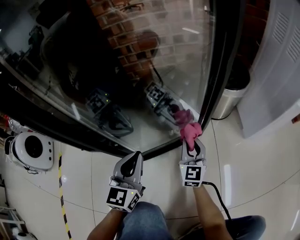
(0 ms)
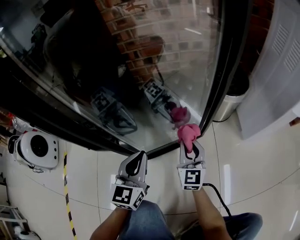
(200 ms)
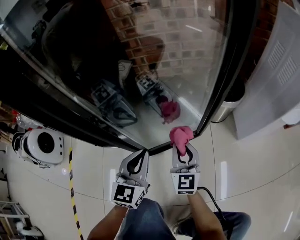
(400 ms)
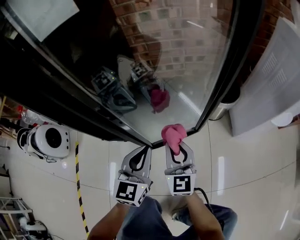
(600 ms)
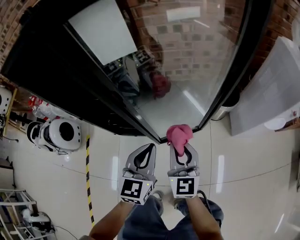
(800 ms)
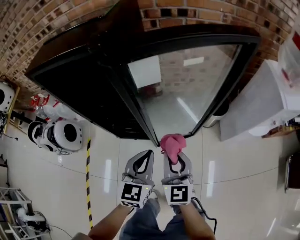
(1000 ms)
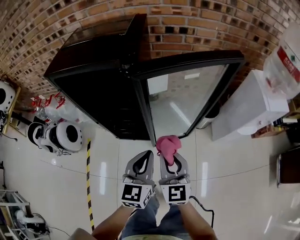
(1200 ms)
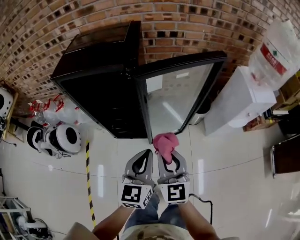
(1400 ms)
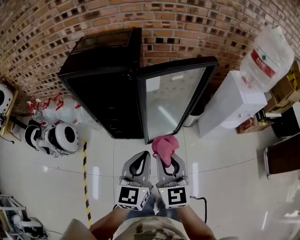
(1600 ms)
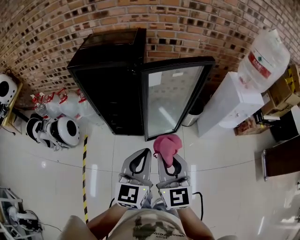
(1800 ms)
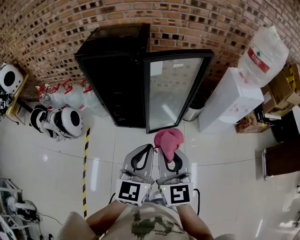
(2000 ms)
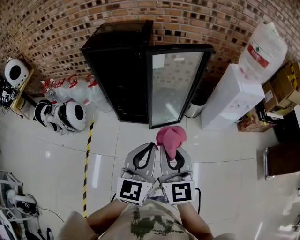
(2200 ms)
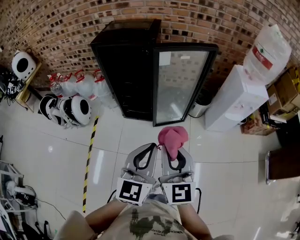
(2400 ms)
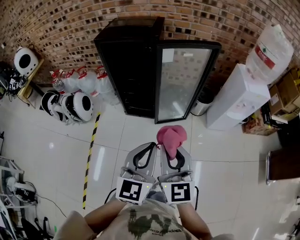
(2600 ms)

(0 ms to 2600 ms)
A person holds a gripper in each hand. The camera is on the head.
0 ms - 1200 ms: Both grippers move upward, some 60 cm.
1200 ms - 2600 ms: Both grippers travel together backward and upward, some 35 cm.

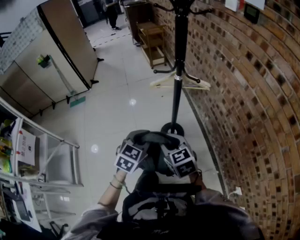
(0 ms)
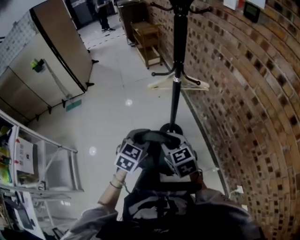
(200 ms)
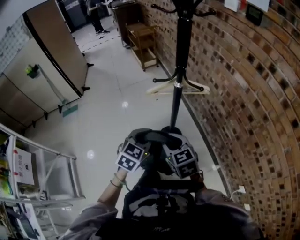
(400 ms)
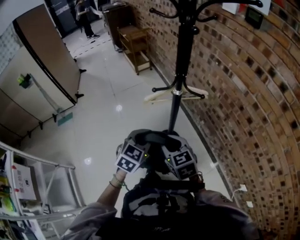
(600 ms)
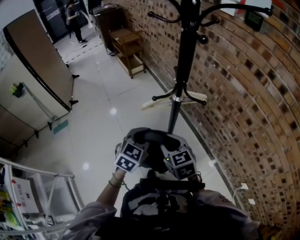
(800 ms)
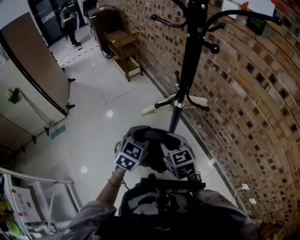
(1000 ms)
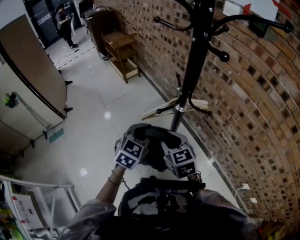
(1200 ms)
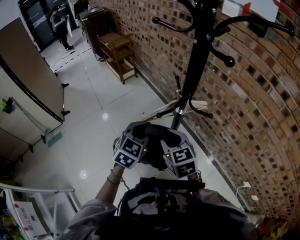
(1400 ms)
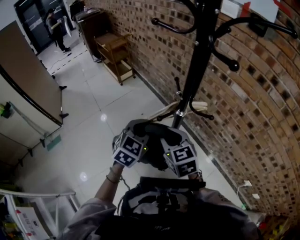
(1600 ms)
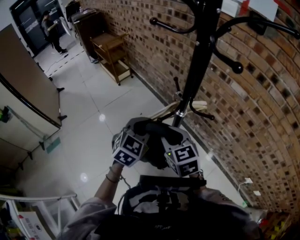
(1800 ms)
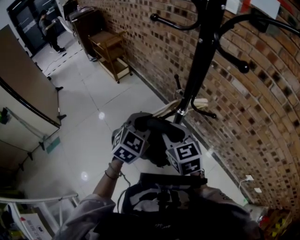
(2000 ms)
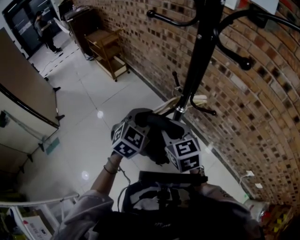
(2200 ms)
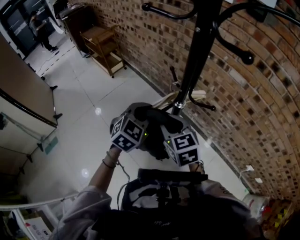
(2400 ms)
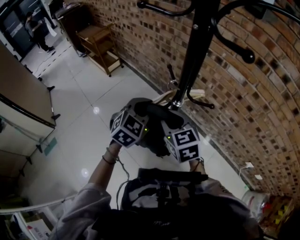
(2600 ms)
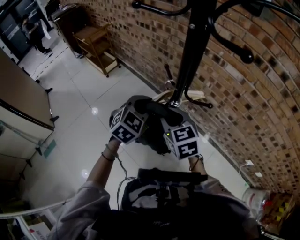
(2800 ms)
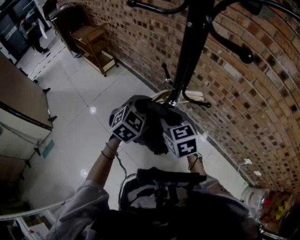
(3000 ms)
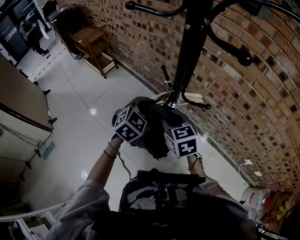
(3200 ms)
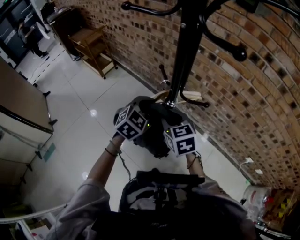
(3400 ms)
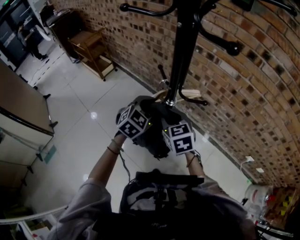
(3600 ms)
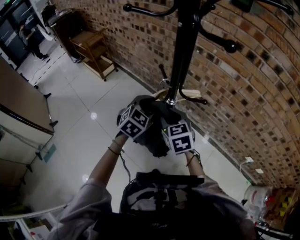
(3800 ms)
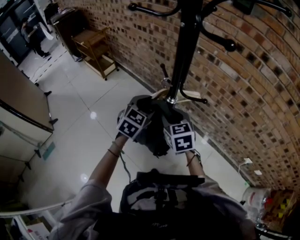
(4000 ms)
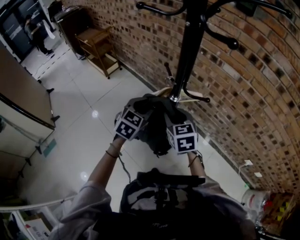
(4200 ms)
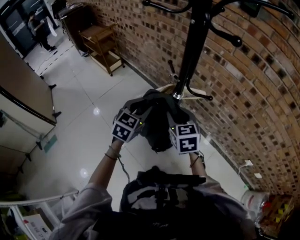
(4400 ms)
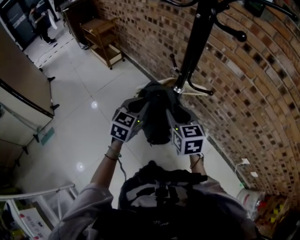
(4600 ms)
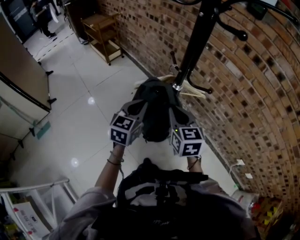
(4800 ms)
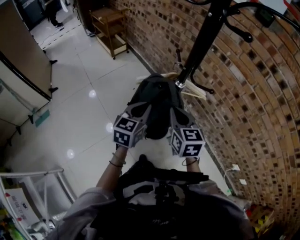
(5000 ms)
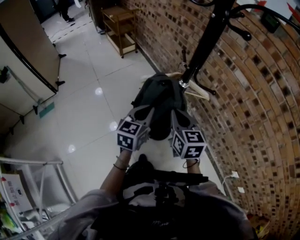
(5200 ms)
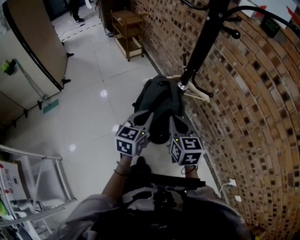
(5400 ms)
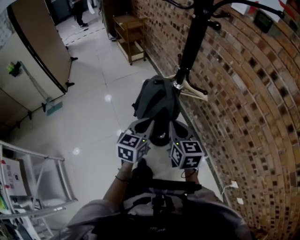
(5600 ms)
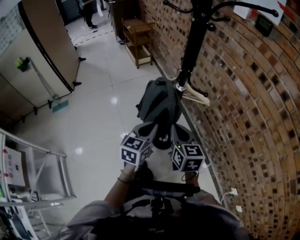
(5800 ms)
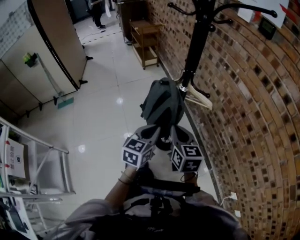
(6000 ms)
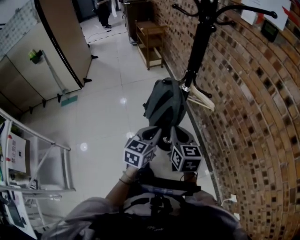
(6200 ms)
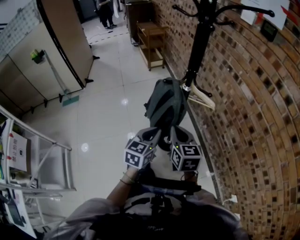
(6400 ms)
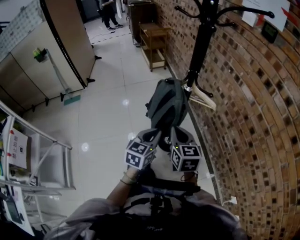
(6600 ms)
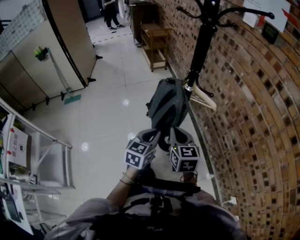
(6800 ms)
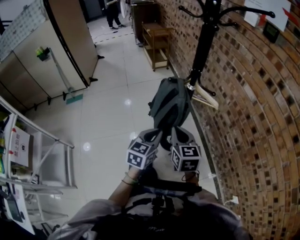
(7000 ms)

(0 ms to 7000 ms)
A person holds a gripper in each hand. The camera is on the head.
0 ms - 1400 ms: The grippers both shift forward by approximately 25 cm. The right gripper changes its angle by some 20 degrees. The left gripper turns by some 20 degrees.
1400 ms - 2800 ms: Both grippers move forward, roughly 10 cm. The left gripper turns by approximately 20 degrees.
2800 ms - 4200 ms: The grippers move only a little.
4200 ms - 5600 ms: The left gripper moves backward, roughly 15 cm, turns by about 40 degrees, and closes its fingers. Meanwhile the right gripper shifts approximately 15 cm backward and to the right, and closes its fingers.
5600 ms - 7000 ms: The grippers both shift backward by about 5 cm.

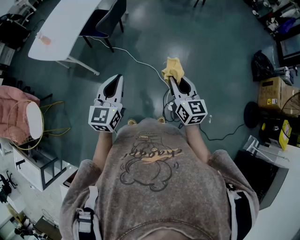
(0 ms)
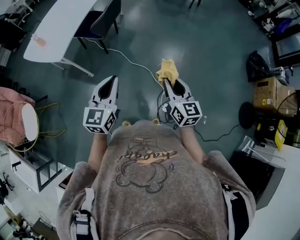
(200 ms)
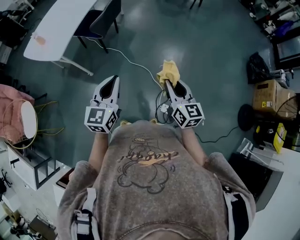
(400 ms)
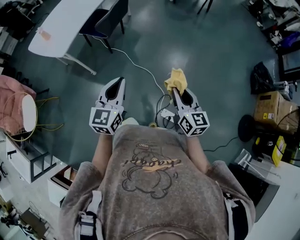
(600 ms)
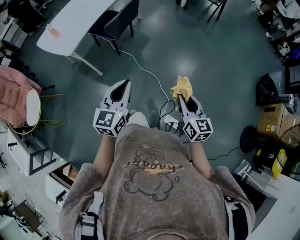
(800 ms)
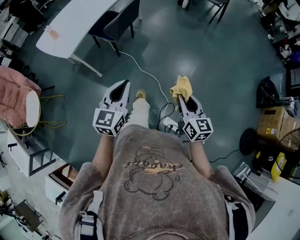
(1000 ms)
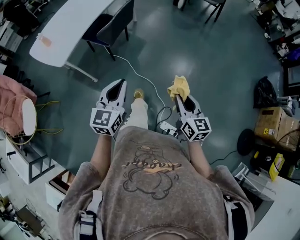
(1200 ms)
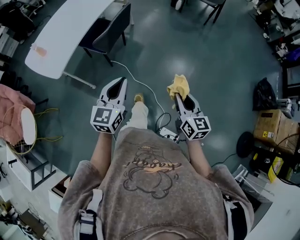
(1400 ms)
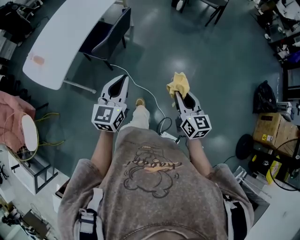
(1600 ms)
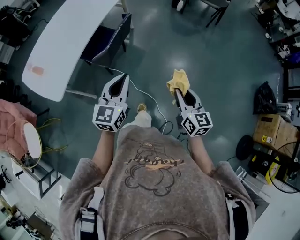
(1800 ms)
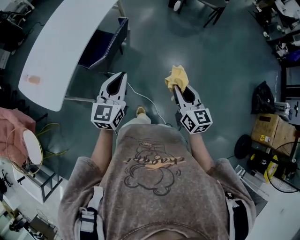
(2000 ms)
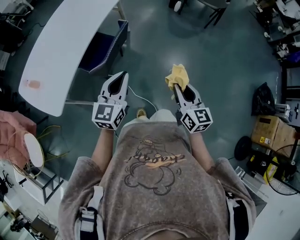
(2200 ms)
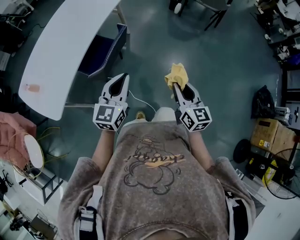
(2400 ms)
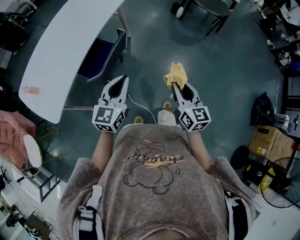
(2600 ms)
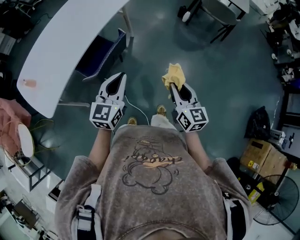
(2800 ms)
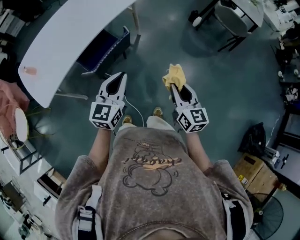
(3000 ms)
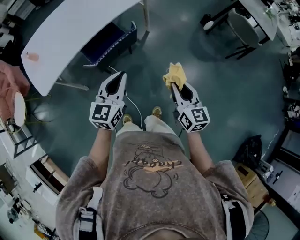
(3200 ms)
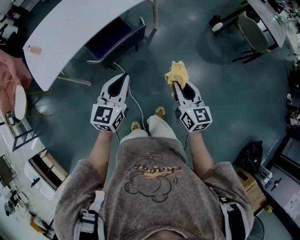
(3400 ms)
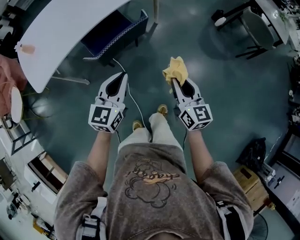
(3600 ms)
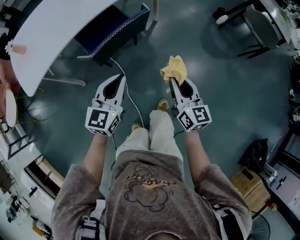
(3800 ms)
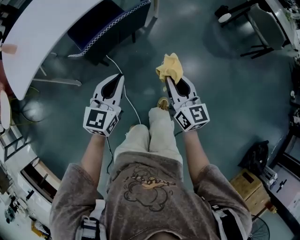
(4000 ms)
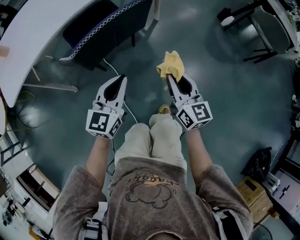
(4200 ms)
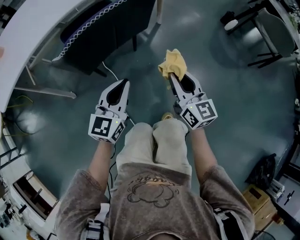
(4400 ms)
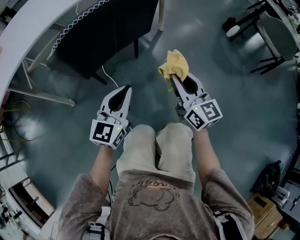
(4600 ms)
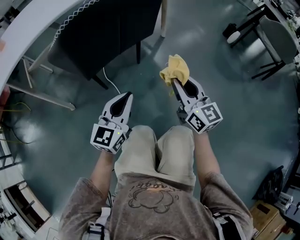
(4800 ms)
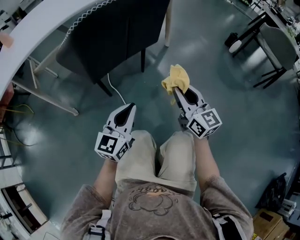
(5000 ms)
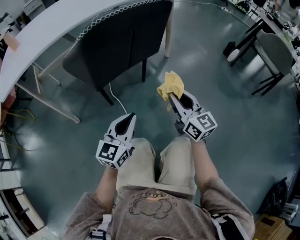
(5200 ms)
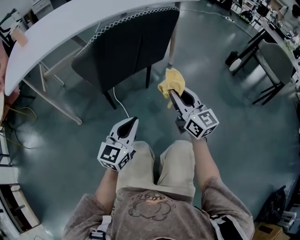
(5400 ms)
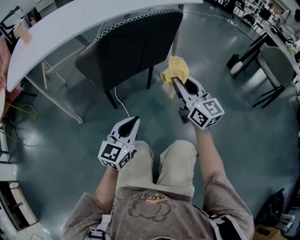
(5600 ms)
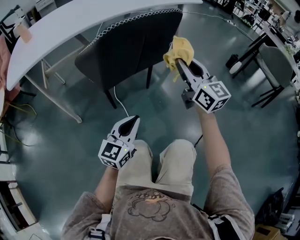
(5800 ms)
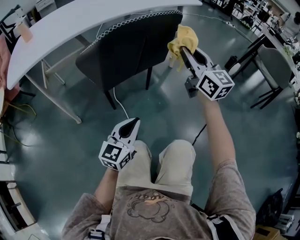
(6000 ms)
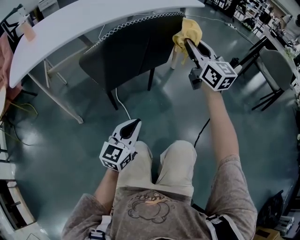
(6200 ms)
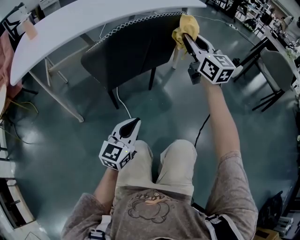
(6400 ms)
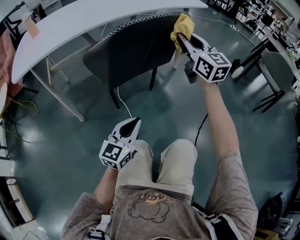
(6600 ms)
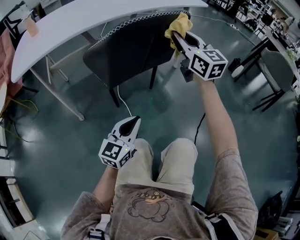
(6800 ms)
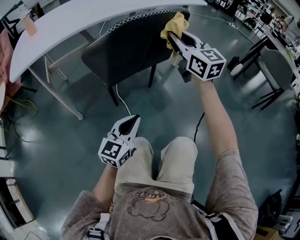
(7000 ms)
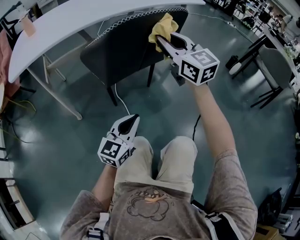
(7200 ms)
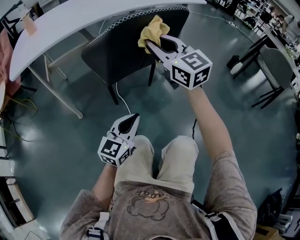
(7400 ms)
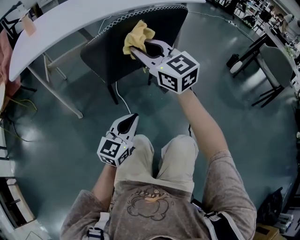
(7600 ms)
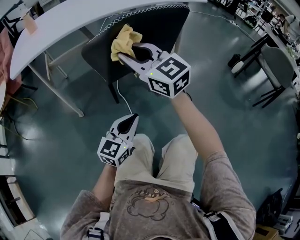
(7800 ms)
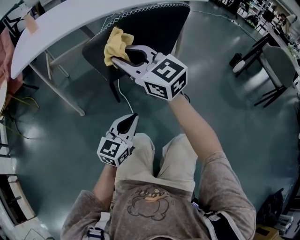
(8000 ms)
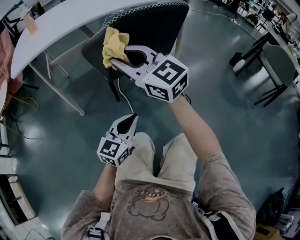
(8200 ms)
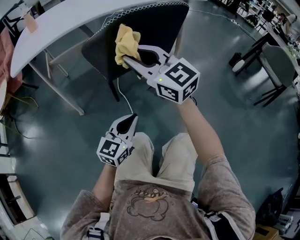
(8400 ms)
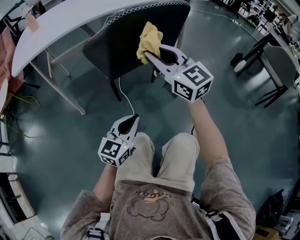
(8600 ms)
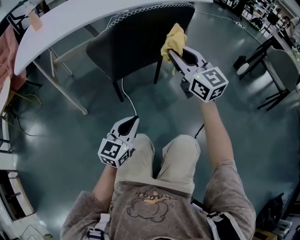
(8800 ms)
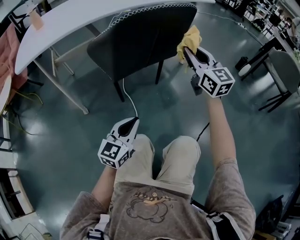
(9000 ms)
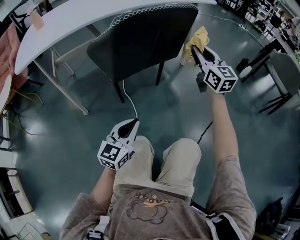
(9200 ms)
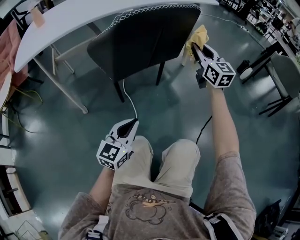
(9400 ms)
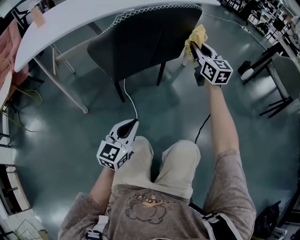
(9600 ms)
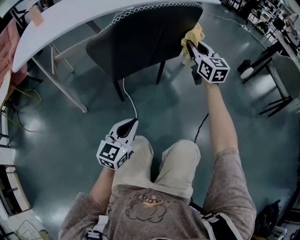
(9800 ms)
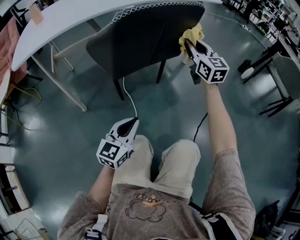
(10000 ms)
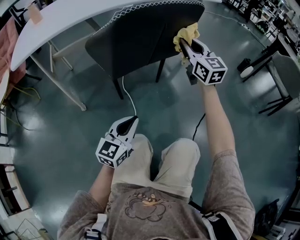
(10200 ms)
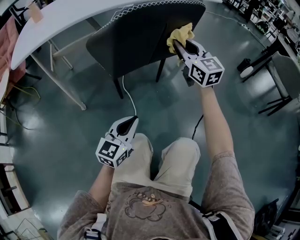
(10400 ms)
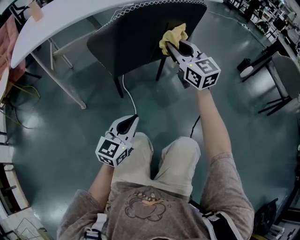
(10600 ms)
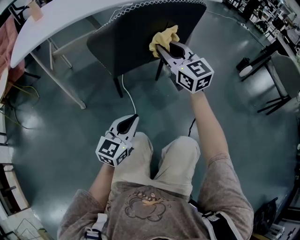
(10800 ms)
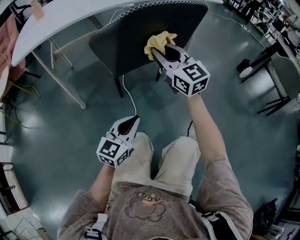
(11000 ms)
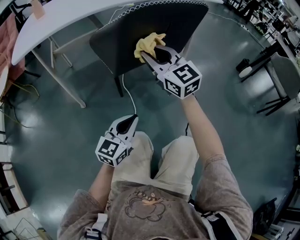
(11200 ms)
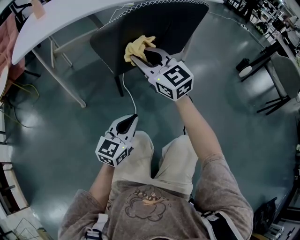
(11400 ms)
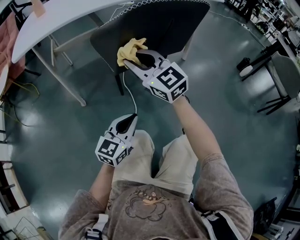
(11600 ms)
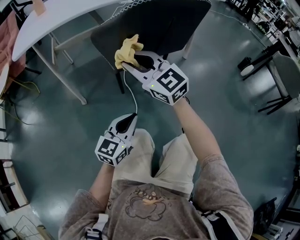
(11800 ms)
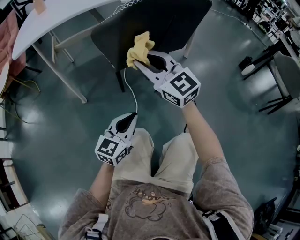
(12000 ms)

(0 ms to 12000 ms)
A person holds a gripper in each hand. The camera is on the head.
0 ms - 1600 ms: The grippers both shift forward by approximately 25 cm.
1600 ms - 3000 ms: The two grippers go approximately 30 cm forward.
3000 ms - 4400 ms: The left gripper moves downward, approximately 35 cm. Meanwhile the right gripper goes roughly 35 cm downward and forward.
4400 ms - 6000 ms: The left gripper travels downward and backward by approximately 10 cm. Meanwhile the right gripper moves forward and upward, approximately 15 cm.
6000 ms - 7600 ms: The right gripper goes approximately 20 cm to the left, and rotates about 20 degrees.
7600 ms - 9000 ms: The right gripper moves to the right, approximately 15 cm.
9000 ms - 10400 ms: The right gripper moves some 5 cm.
10400 ms - 12000 ms: The right gripper travels to the left and backward by about 20 cm, and swivels about 20 degrees.

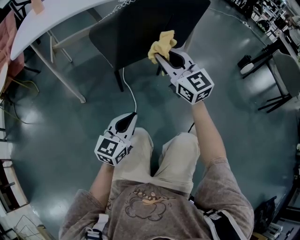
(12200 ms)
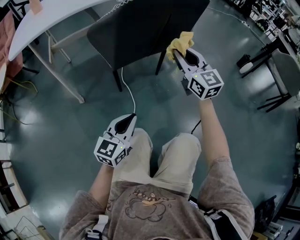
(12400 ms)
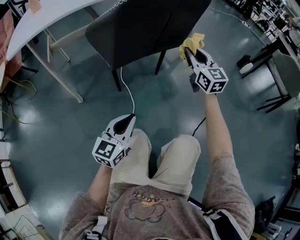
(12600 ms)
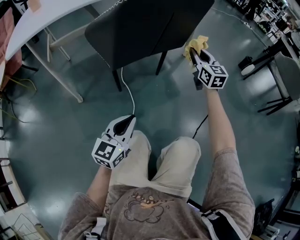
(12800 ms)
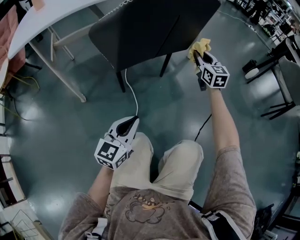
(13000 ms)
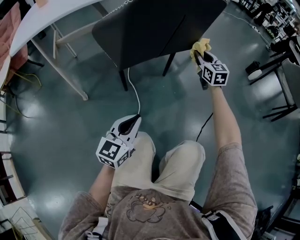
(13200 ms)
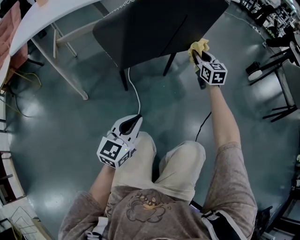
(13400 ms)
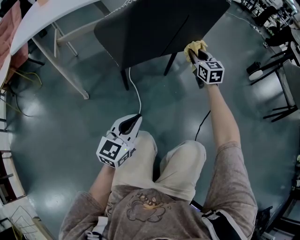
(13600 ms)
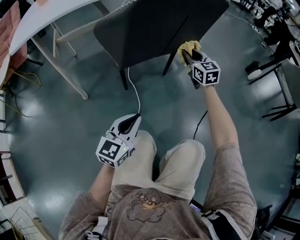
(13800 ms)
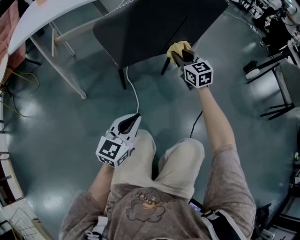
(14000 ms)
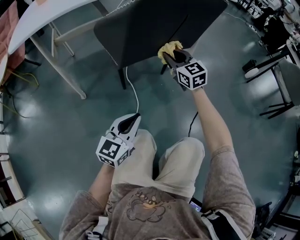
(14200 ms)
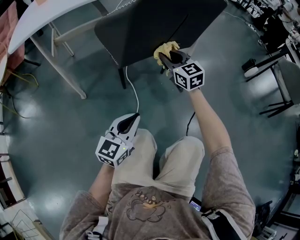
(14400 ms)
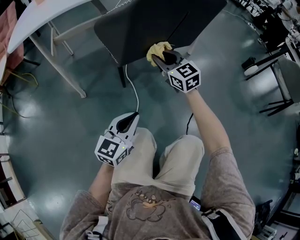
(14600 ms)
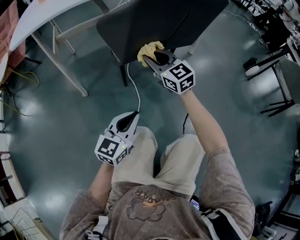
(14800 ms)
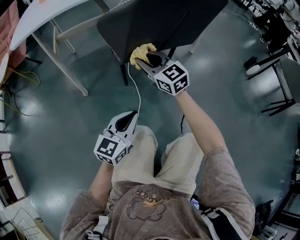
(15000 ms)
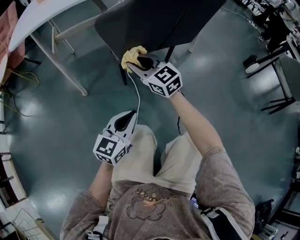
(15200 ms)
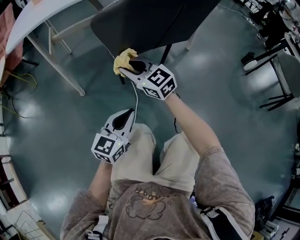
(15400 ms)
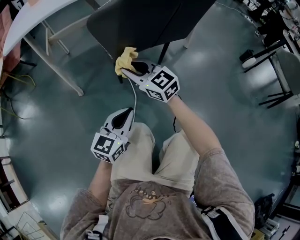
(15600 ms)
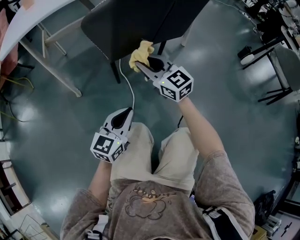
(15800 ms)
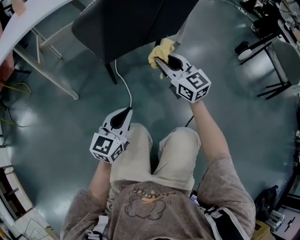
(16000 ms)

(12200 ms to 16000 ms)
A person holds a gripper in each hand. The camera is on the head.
12200 ms - 13400 ms: The right gripper shifts roughly 25 cm forward, to the right and downward, and swivels approximately 30 degrees.
13400 ms - 14800 ms: The right gripper is displaced to the left and backward by approximately 25 cm, and rotates roughly 30 degrees.
14800 ms - 16000 ms: The right gripper goes some 10 cm to the right and backward.
